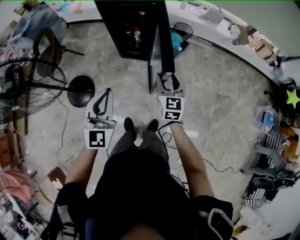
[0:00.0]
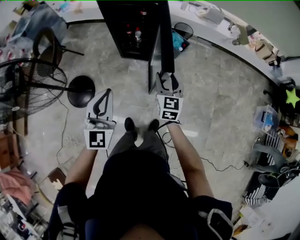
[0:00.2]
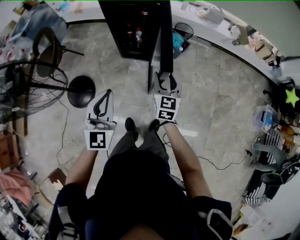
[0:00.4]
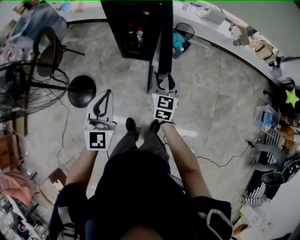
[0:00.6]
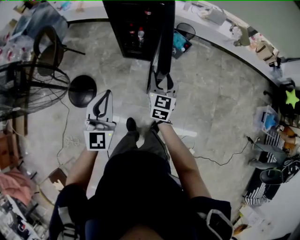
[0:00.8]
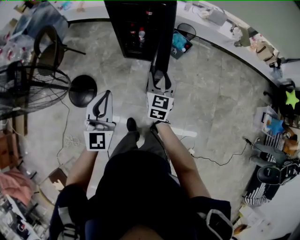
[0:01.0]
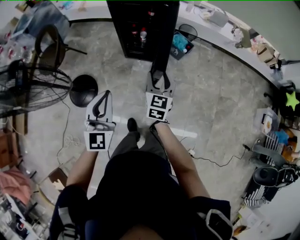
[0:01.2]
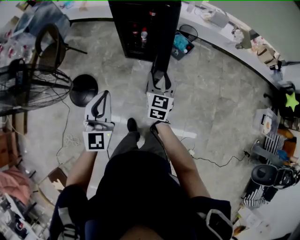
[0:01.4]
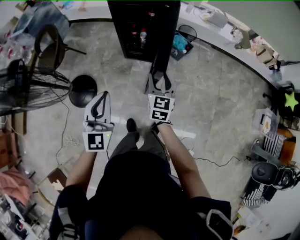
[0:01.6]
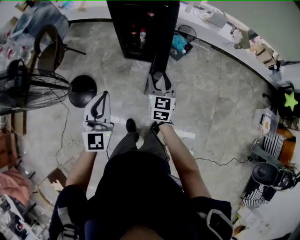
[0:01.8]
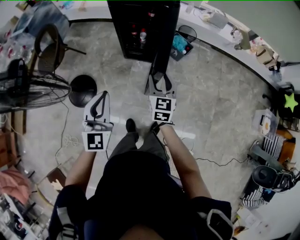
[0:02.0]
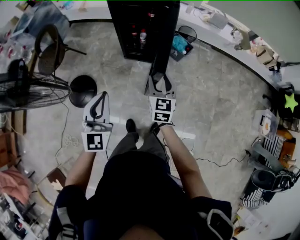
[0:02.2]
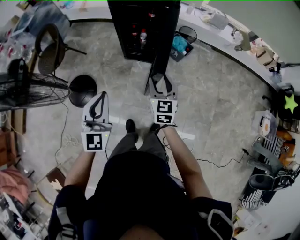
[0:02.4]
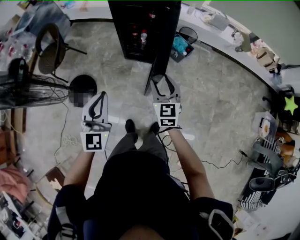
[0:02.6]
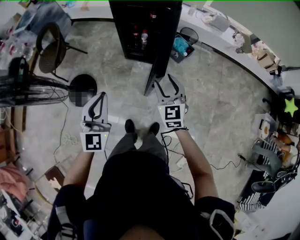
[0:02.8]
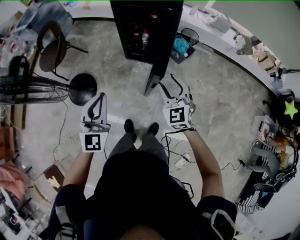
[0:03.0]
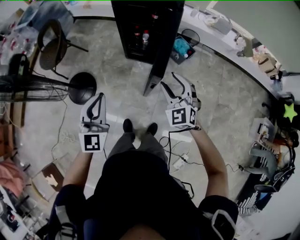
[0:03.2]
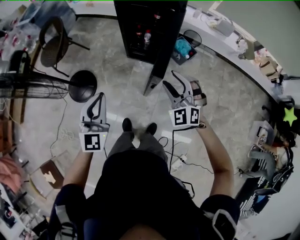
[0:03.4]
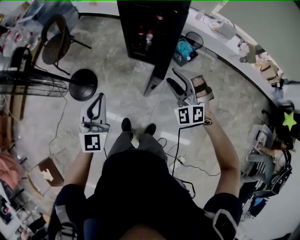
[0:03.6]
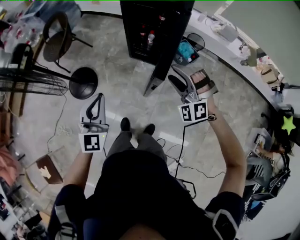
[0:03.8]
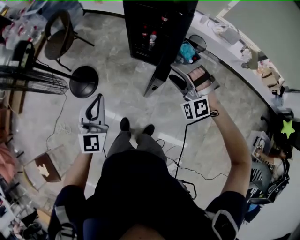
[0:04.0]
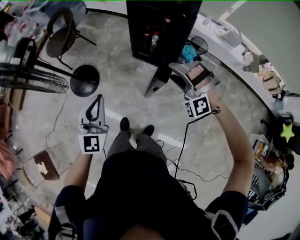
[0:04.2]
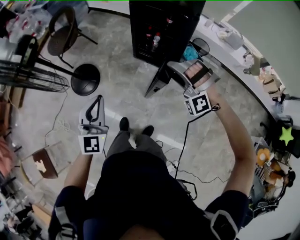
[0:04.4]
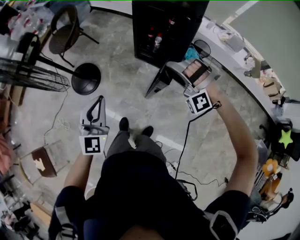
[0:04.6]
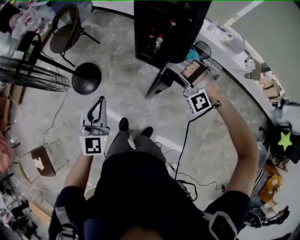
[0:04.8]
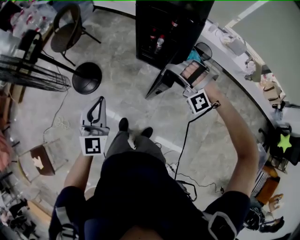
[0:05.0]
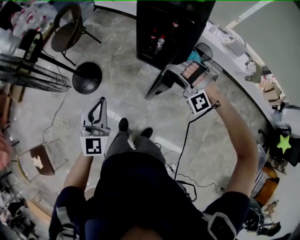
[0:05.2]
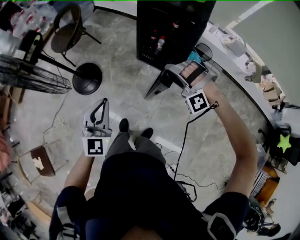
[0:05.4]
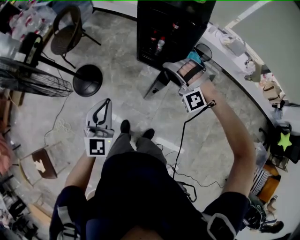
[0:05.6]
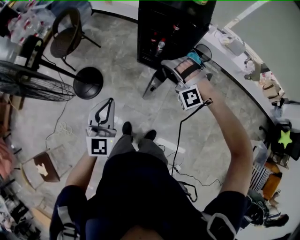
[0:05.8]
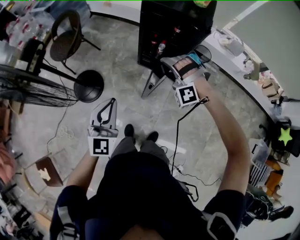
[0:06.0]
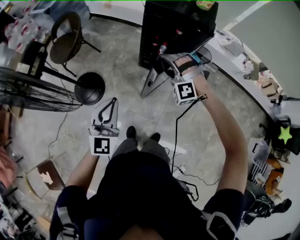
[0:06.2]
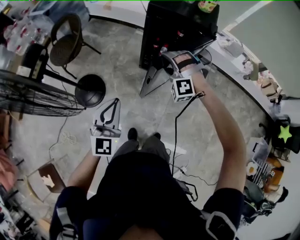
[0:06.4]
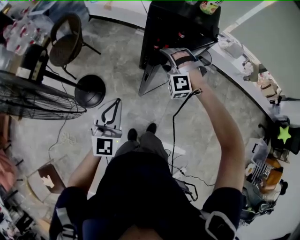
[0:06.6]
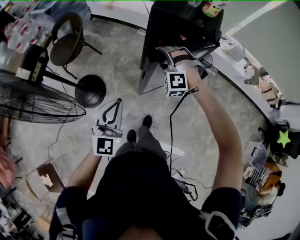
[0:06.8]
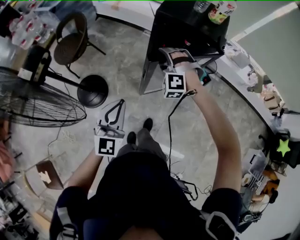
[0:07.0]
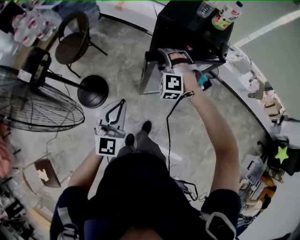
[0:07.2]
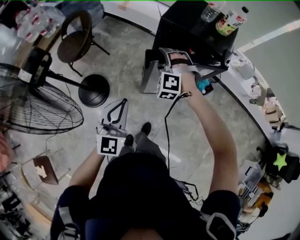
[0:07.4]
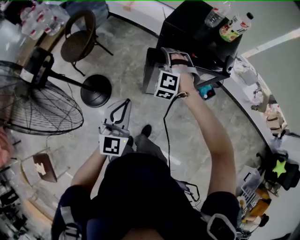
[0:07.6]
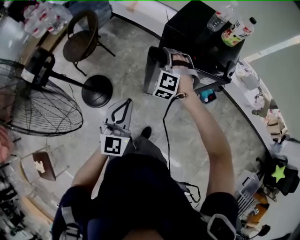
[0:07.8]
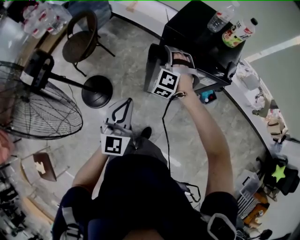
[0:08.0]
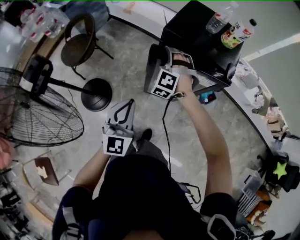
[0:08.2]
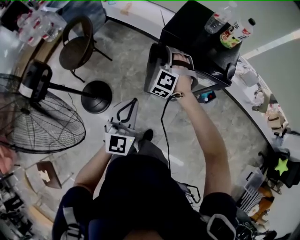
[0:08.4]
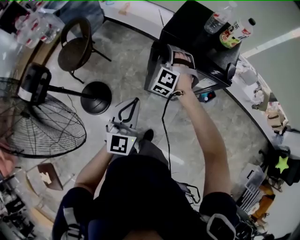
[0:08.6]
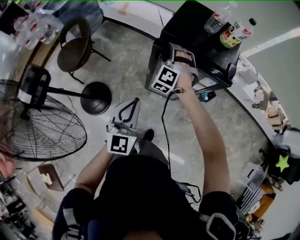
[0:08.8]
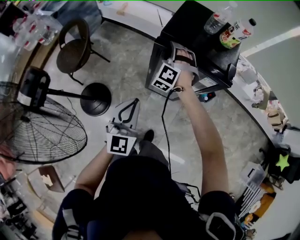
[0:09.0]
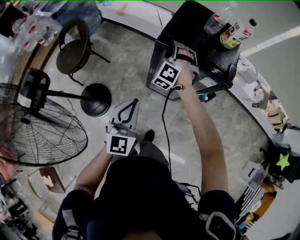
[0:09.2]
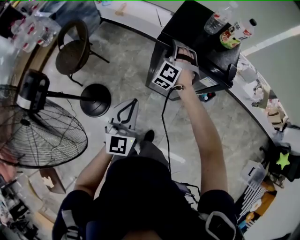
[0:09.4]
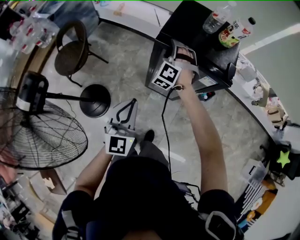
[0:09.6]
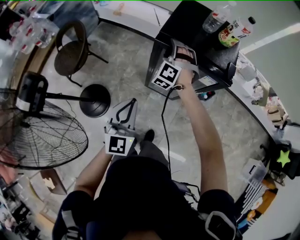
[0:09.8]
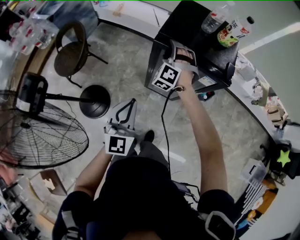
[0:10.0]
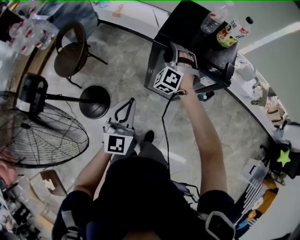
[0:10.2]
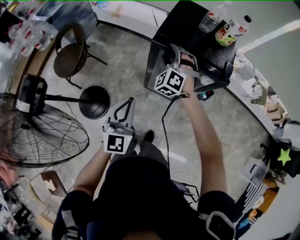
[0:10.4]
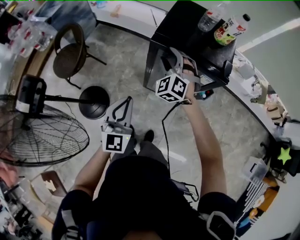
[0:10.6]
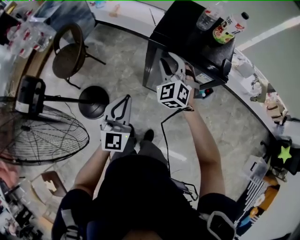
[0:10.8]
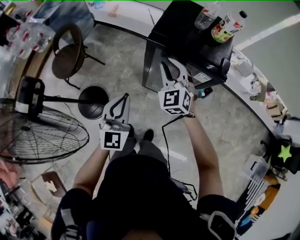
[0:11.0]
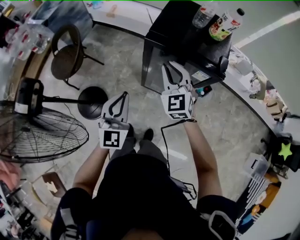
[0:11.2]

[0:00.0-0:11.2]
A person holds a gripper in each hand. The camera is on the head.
0:00.0 to 0:01.6: The grippers both shift to the left by roughly 10 cm.
0:01.6 to 0:03.2: The right gripper ends up some 5 cm from where it was, and rolls counterclockwise, seen from behind, by some 40 degrees.
0:03.2 to 0:04.8: The right gripper shifts about 5 cm forward, and rotates around the line of its fingers by about 70 degrees, counterclockwise from behind.
0:04.8 to 0:06.4: The left gripper is displaced forward and to the left by about 10 cm, while the right gripper heads forward and to the left, covering roughly 20 cm, and rotates about 20 degrees.
0:06.4 to 0:08.0: Both grippers travel together forward, roughly 20 cm.
0:08.0 to 0:09.6: The left gripper goes approximately 5 cm forward. The right gripper moves forward, approximately 10 cm.
0:09.6 to 0:11.2: The right gripper heads backward and upward, covering roughly 15 cm, rolls clockwise, seen from behind, by about 40 degrees, and closes.

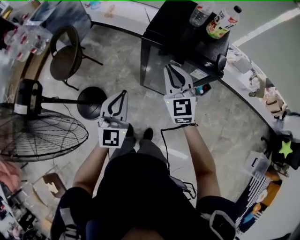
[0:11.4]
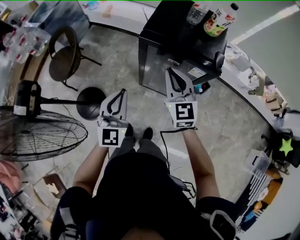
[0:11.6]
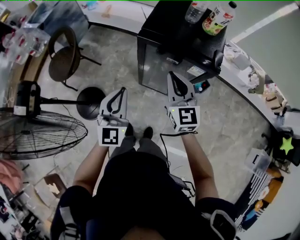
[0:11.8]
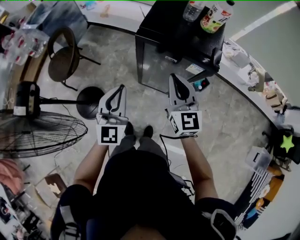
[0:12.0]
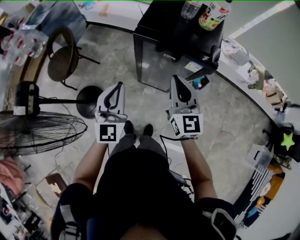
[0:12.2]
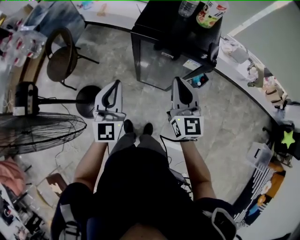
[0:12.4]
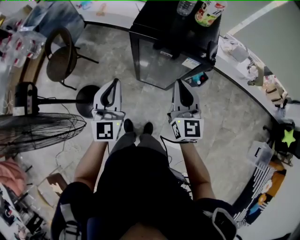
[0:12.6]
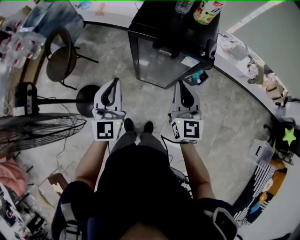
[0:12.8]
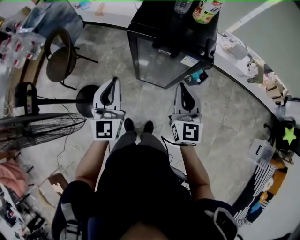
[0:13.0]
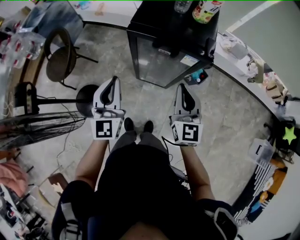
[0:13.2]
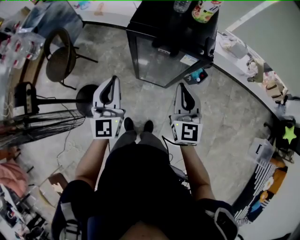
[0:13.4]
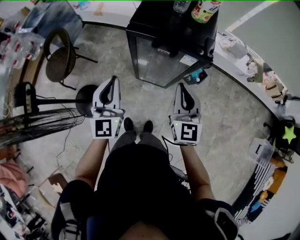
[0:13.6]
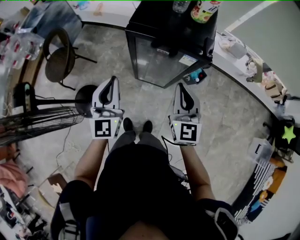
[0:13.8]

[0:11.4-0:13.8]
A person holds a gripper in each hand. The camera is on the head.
0:11.4 to 0:12.6: The right gripper is displaced backward and to the right by roughly 10 cm, and rotates roughly 20 degrees.
0:12.6 to 0:13.8: There are only small adjustments of the grippers.

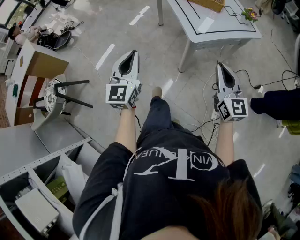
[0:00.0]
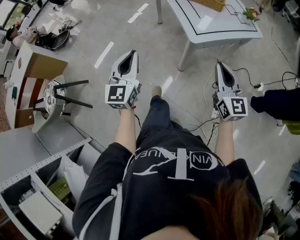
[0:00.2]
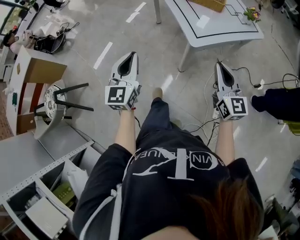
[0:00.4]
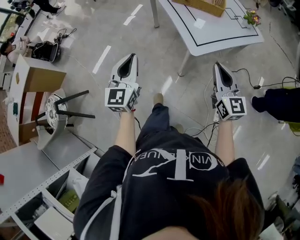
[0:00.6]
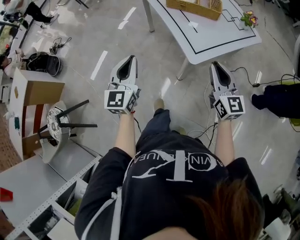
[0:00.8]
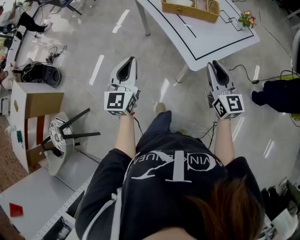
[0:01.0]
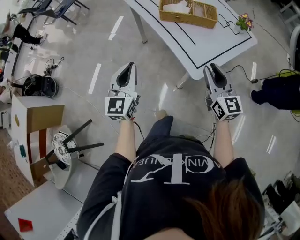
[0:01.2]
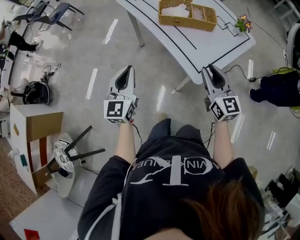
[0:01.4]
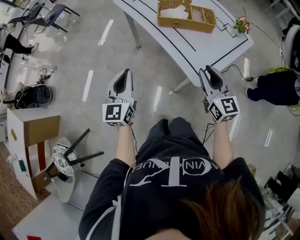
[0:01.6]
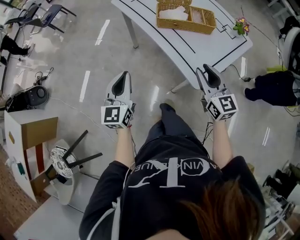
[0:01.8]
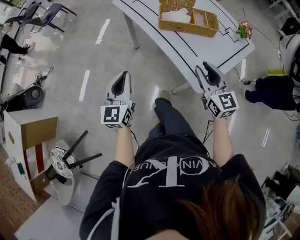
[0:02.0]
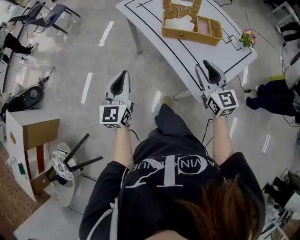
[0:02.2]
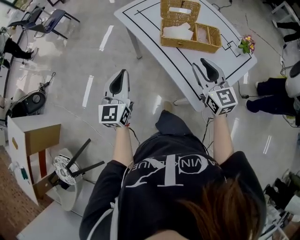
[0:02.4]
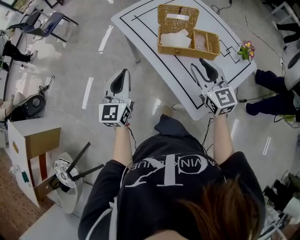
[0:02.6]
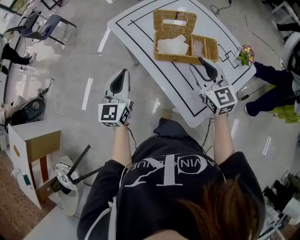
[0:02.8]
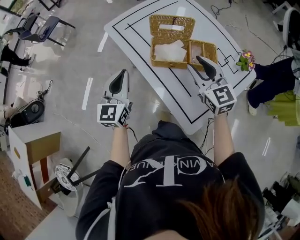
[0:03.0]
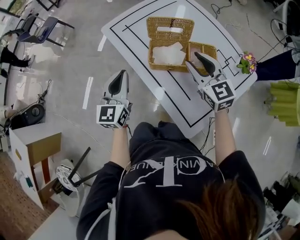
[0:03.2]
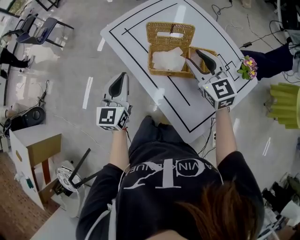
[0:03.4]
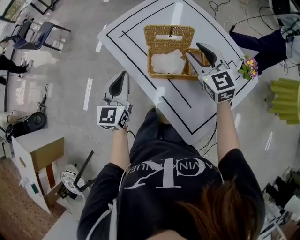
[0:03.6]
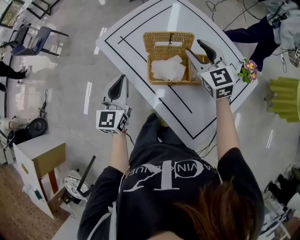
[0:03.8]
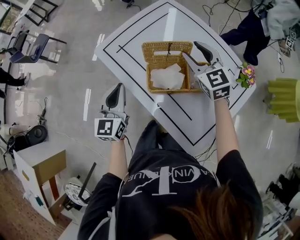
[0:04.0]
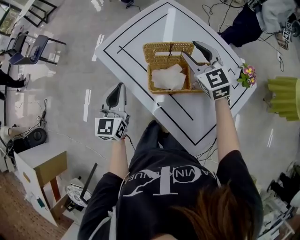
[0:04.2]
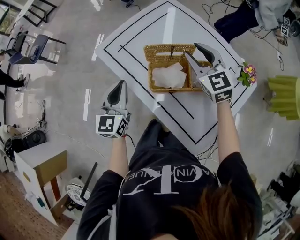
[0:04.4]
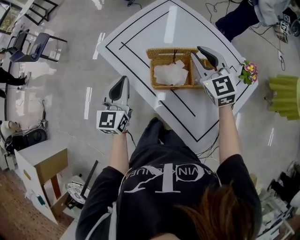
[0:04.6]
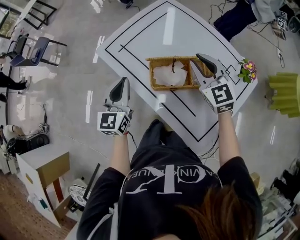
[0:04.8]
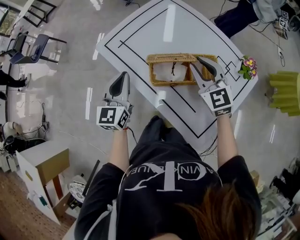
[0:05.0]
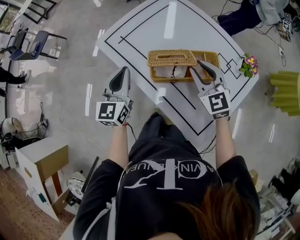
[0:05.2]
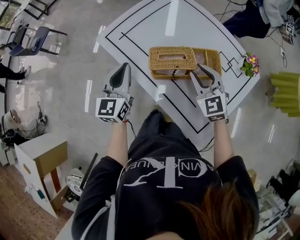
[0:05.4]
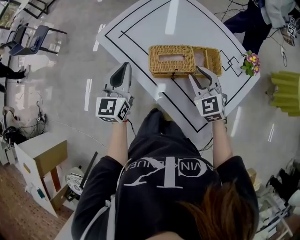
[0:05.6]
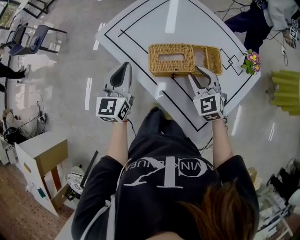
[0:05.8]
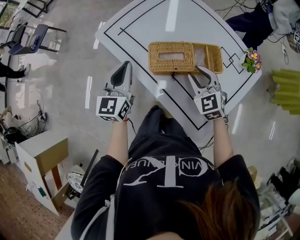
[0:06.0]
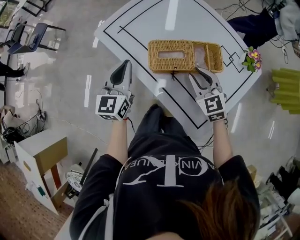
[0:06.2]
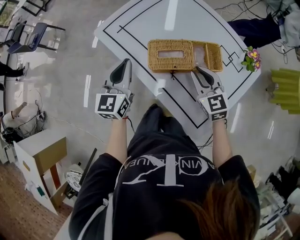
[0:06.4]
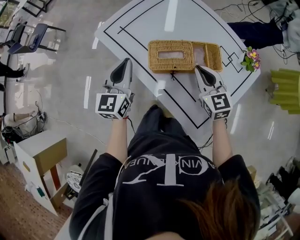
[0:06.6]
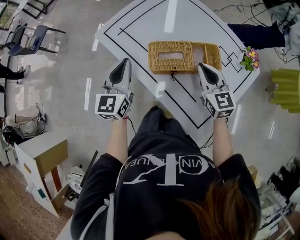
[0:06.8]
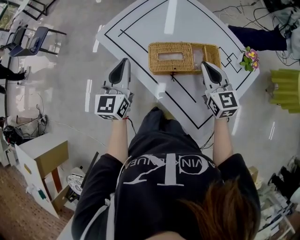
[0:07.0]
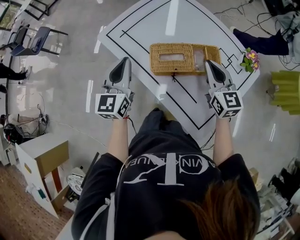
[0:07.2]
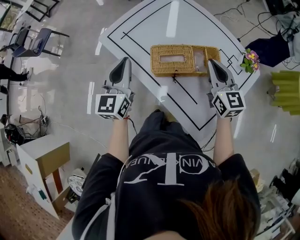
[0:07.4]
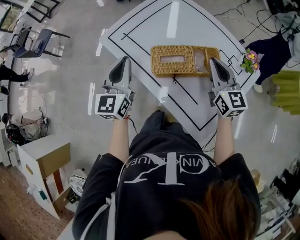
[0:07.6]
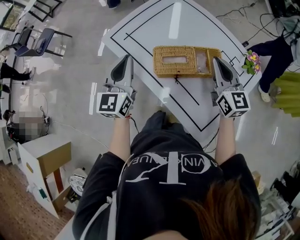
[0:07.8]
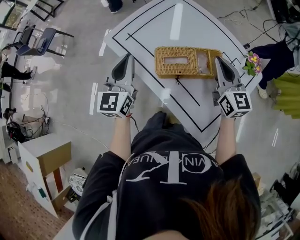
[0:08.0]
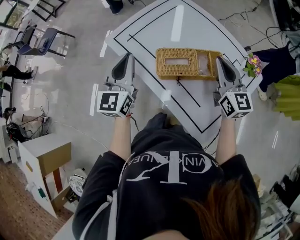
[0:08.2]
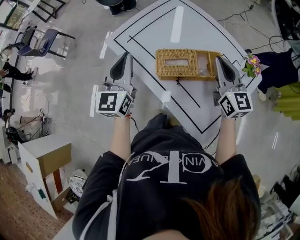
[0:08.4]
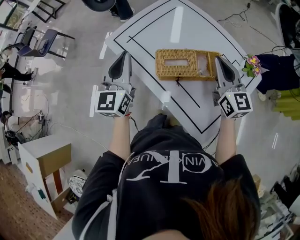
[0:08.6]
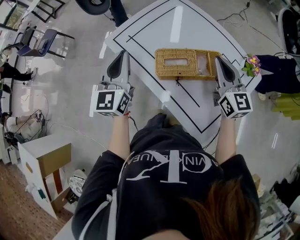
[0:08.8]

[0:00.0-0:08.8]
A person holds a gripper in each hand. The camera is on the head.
0:00.0 to 0:01.4: Both grippers travel together forward, roughly 30 cm. The right gripper opens up.
0:01.4 to 0:03.0: Both grippers travel together forward, roughly 25 cm.
0:03.0 to 0:04.4: The two grippers go about 15 cm forward.
0:04.4 to 0:05.8: The right gripper is displaced backward and downward by roughly 15 cm.
0:05.8 to 0:07.4: The right gripper is displaced upward by about 10 cm, rotates approximately 40 degrees, and closes.
0:07.4 to 0:08.8: The left gripper is displaced upward by some 5 cm.

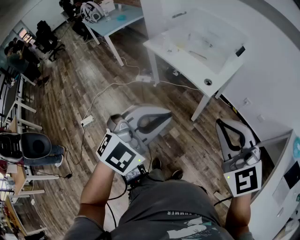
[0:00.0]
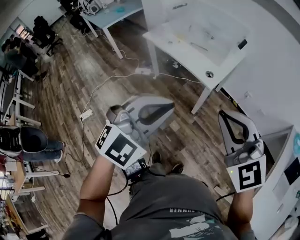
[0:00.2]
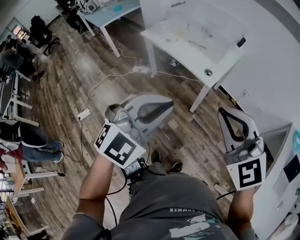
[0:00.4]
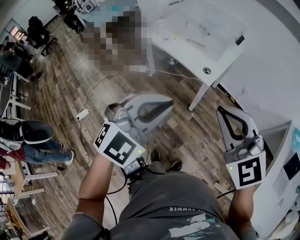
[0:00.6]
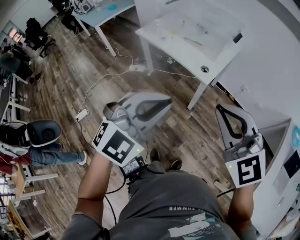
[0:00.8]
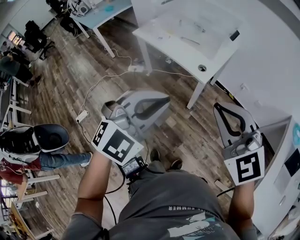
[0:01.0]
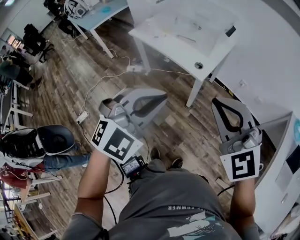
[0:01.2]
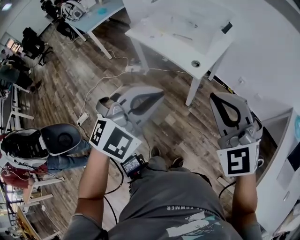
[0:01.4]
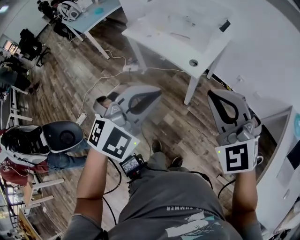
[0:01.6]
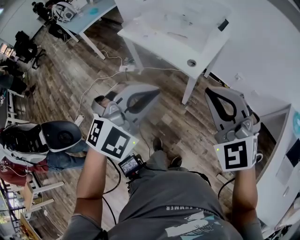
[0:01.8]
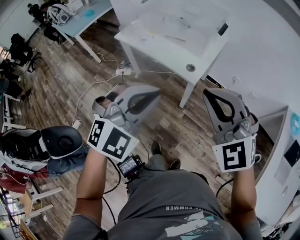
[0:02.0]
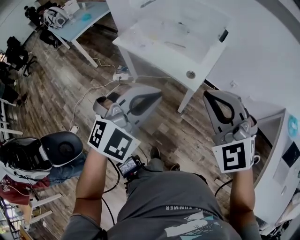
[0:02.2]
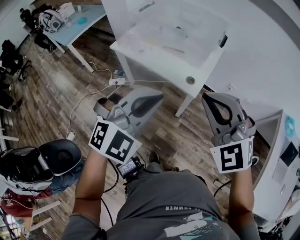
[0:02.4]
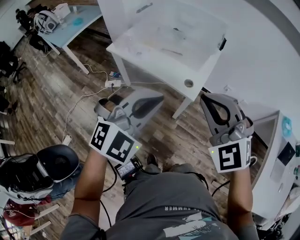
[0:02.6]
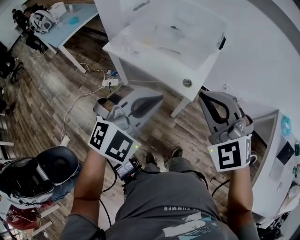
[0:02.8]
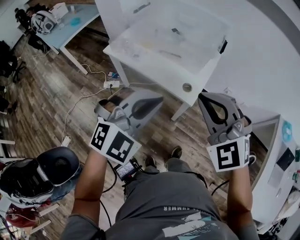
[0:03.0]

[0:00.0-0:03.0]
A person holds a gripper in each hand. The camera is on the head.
0:00.0 to 0:01.6: Both grippers travel together forward, some 10 cm. The right gripper swivels some 20 degrees.
0:01.6 to 0:03.0: The grippers both shift forward and to the left by some 20 cm.
